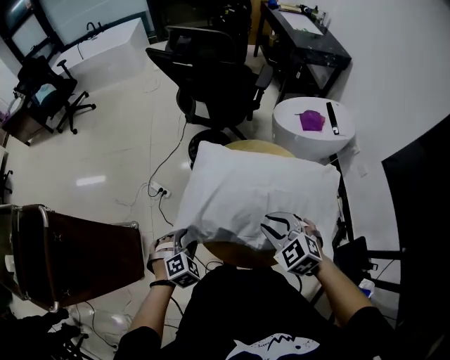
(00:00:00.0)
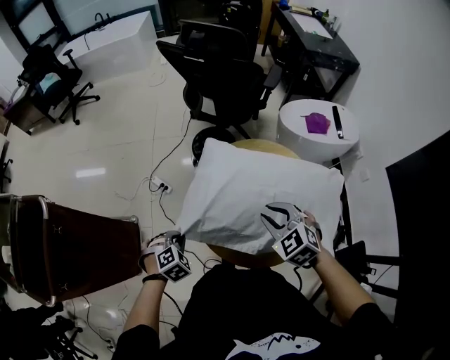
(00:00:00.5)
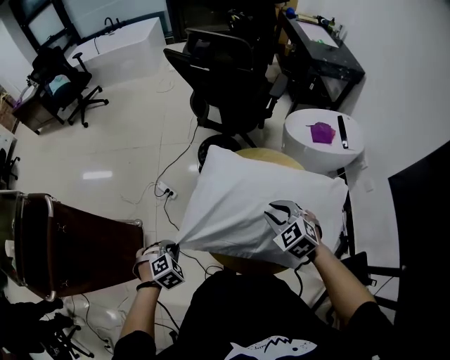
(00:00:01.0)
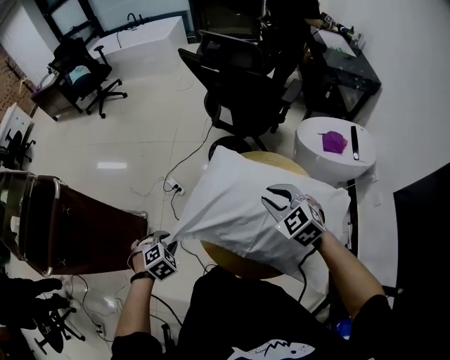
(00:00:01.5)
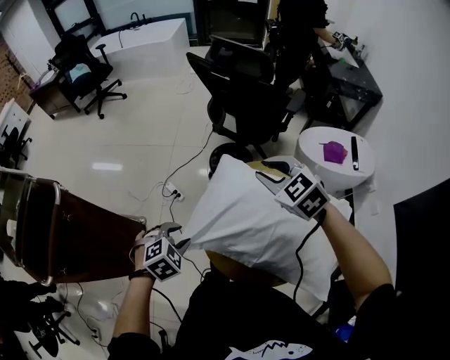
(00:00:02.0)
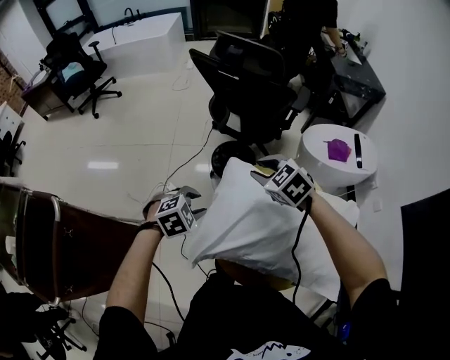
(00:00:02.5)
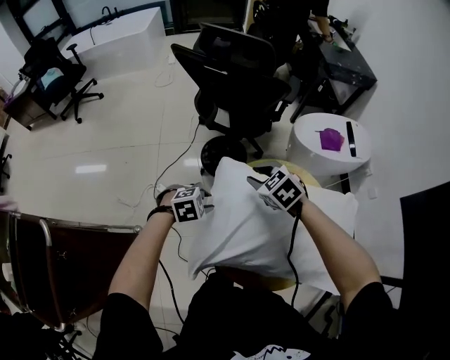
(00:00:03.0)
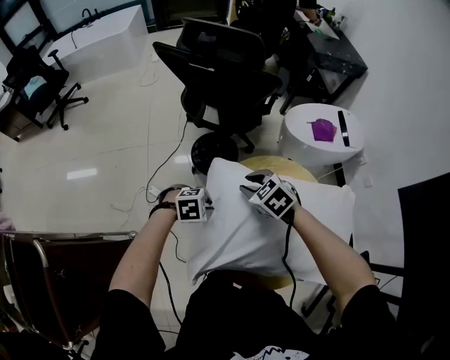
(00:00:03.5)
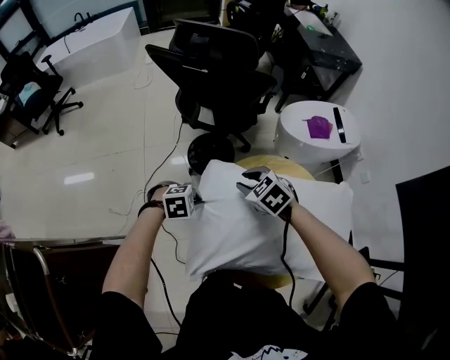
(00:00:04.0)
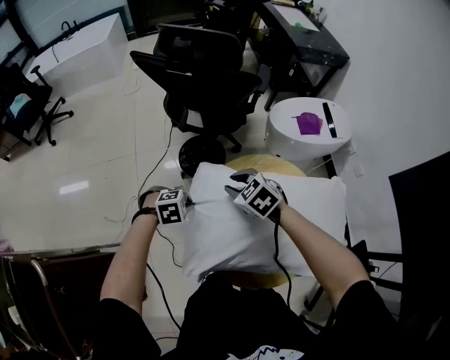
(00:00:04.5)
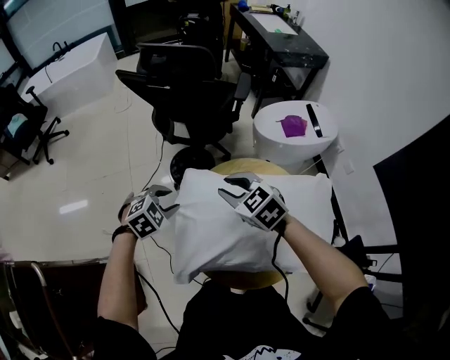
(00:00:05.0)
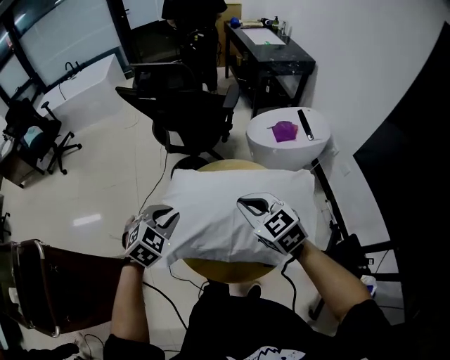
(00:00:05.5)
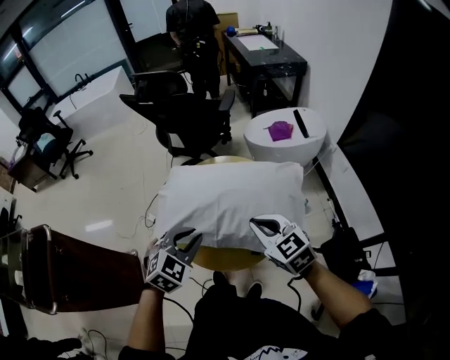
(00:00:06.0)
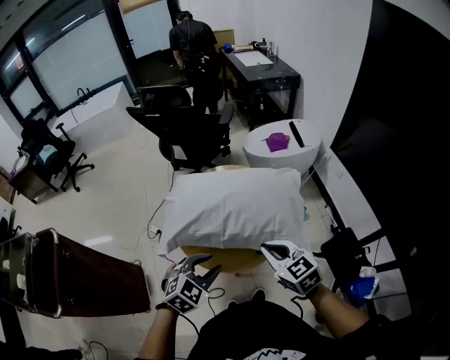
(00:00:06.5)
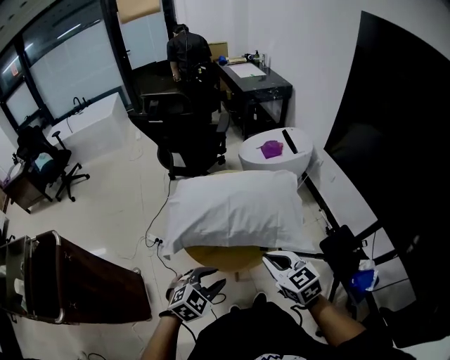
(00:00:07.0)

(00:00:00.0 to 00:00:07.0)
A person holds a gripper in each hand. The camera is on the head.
00:00:00.0 - 00:00:02.0: The right gripper moves forward and upward, about 20 cm. Meanwhile the left gripper goes approximately 10 cm upward, and closes, then reopens.
00:00:02.0 - 00:00:03.5: The right gripper shifts some 20 cm downward, and turns by some 20 degrees. Meanwhile the left gripper shifts by about 20 cm, turns by approximately 40 degrees, and closes its fingers.
00:00:03.5 - 00:00:05.0: The two grippers go about 10 cm upward. The left gripper rotates roughly 20 degrees, and opens up.
00:00:05.0 - 00:00:07.0: The two grippers travel together, backward and to the right, some 50 cm. The right gripper rotates some 20 degrees, and closes.

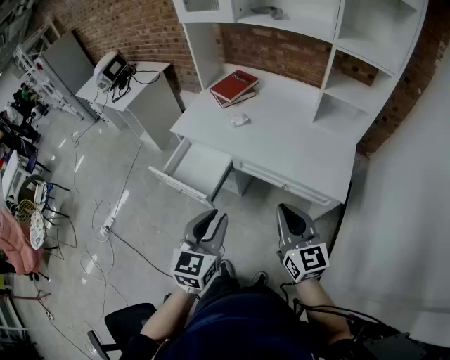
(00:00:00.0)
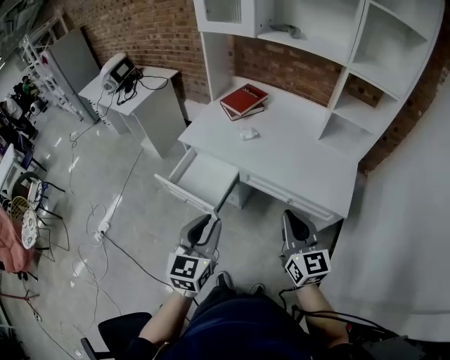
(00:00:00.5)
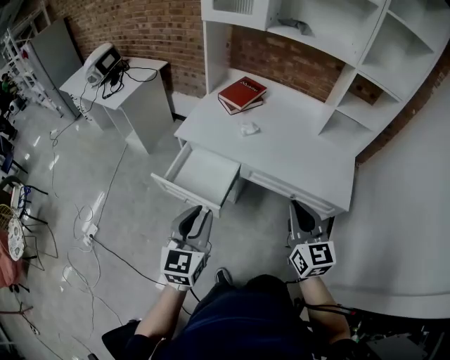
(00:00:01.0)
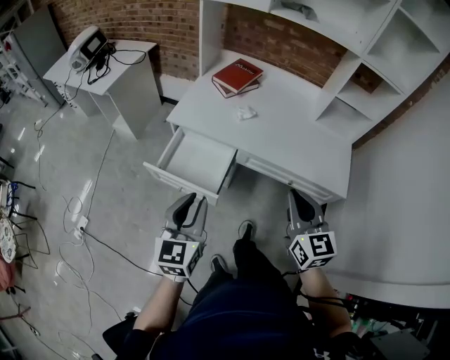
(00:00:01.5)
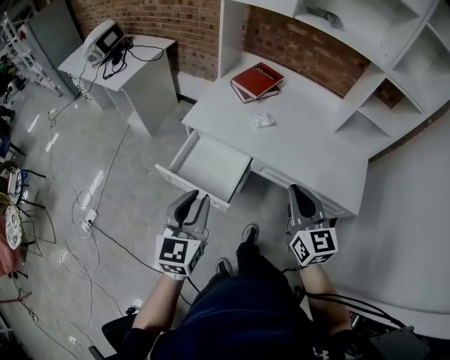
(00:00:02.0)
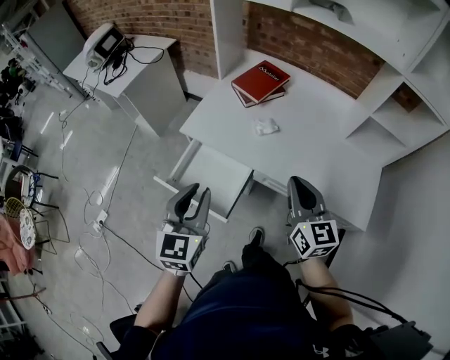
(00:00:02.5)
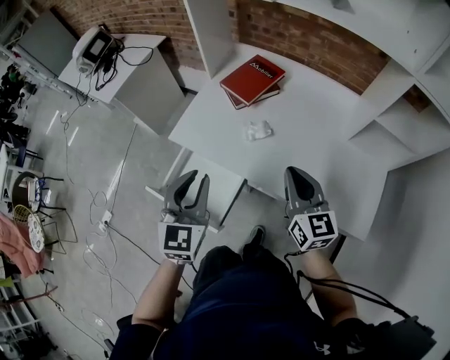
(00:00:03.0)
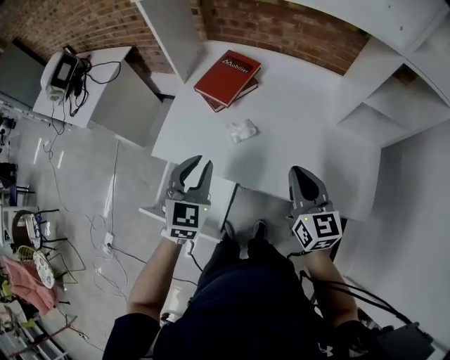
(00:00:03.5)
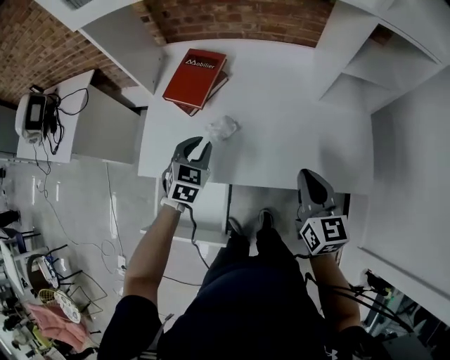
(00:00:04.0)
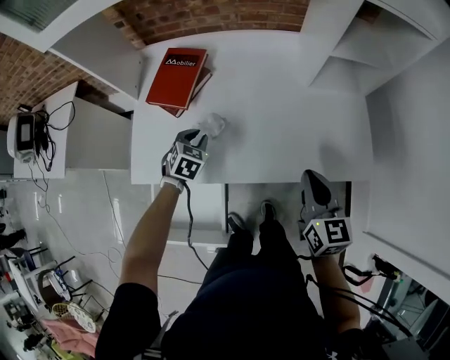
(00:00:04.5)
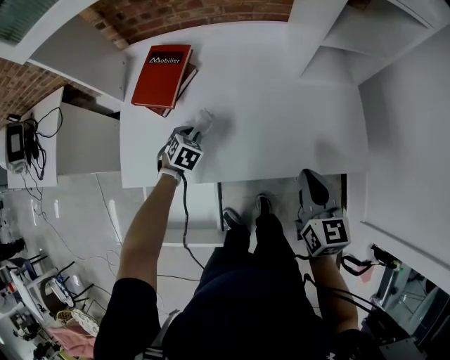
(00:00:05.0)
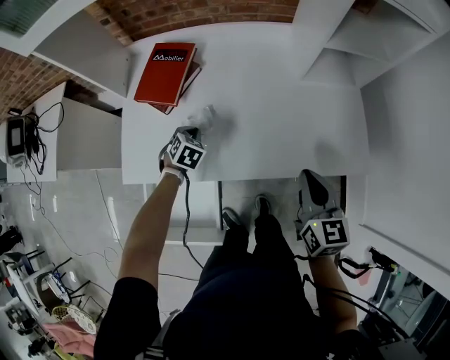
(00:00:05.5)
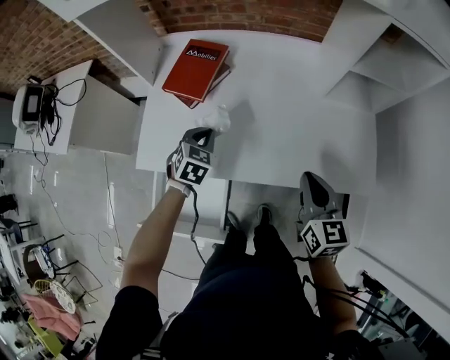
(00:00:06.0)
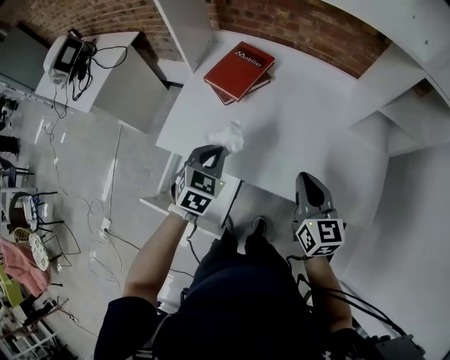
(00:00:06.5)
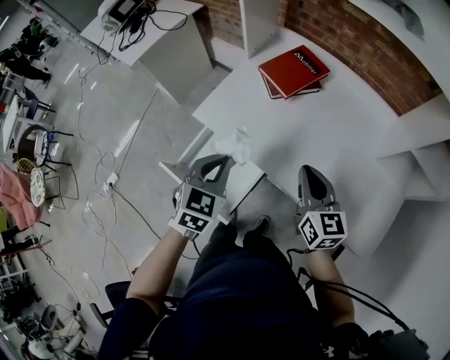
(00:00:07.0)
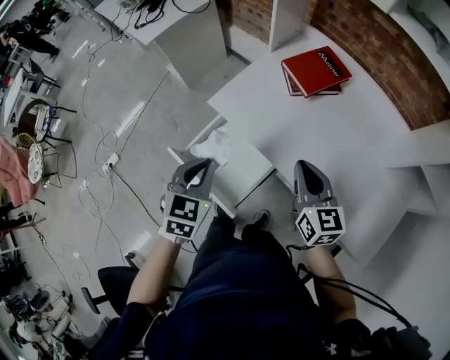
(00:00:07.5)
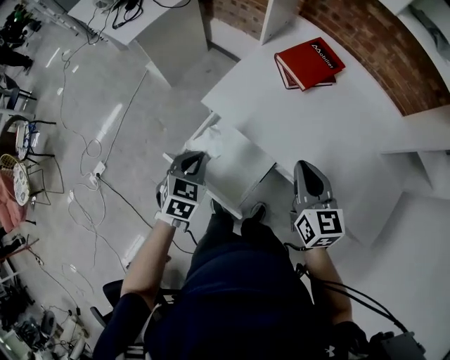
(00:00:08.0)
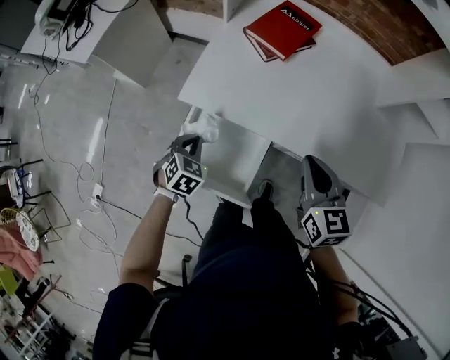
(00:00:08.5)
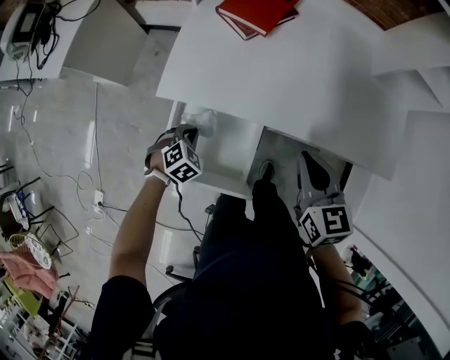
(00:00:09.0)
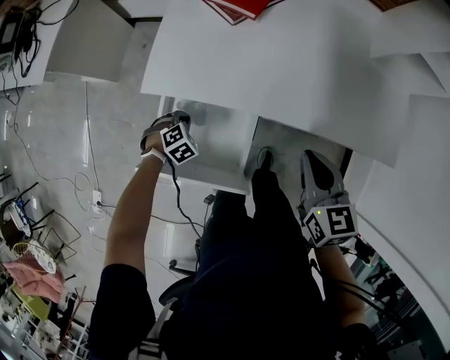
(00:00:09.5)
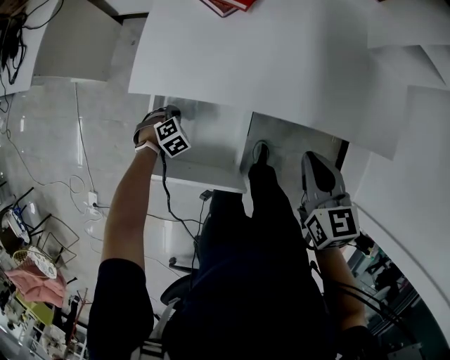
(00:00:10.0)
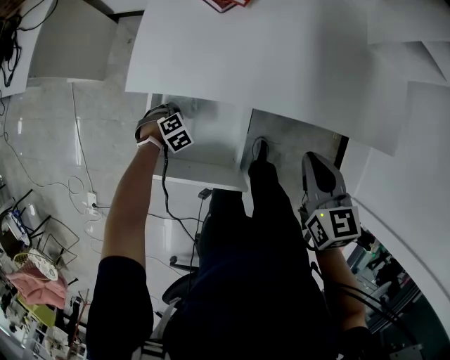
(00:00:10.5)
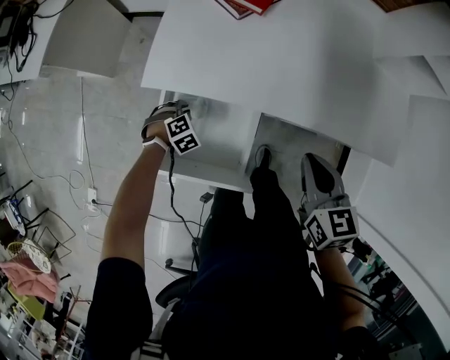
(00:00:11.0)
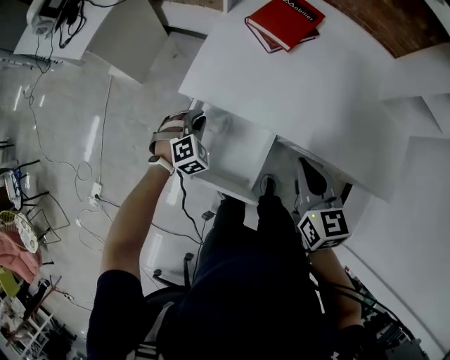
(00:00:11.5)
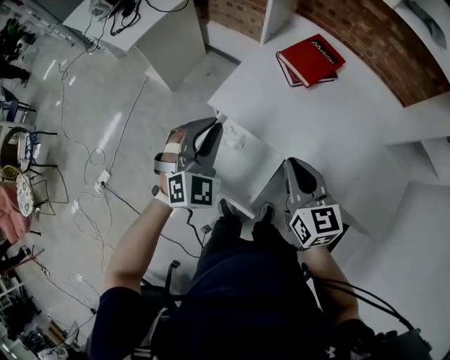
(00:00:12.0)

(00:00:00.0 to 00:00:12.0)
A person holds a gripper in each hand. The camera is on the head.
00:00:00.0 - 00:00:02.0: The two grippers go some 20 cm to the left and forward.
00:00:02.0 - 00:00:04.0: The right gripper moves roughly 25 cm, and swivels roughly 30 degrees, while the left gripper changes place by some 40 cm, and changes its angle by about 40 degrees.
00:00:04.0 - 00:00:06.0: The left gripper goes downward and returns, roughly 15 cm each way, and closes up.
00:00:06.0 - 00:00:08.0: The right gripper changes place by about 25 cm, and changes its angle by about 30 degrees. Meanwhile the left gripper goes upward and returns, roughly 15 cm each way, and turns by roughly 30 degrees.
00:00:08.0 - 00:00:10.0: The left gripper goes about 30 cm downward, and rotates around the line of its fingers by about 60 degrees, clockwise from behind, while the right gripper shifts by about 15 cm, and changes its angle by about 30 degrees.
00:00:10.0 - 00:00:12.0: The left gripper is displaced upward by about 40 cm, and points its fingers approximately 60 degrees further upward; the right gripper shifts by approximately 15 cm, and swivels roughly 30 degrees.

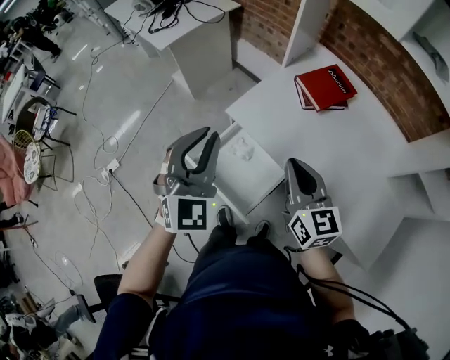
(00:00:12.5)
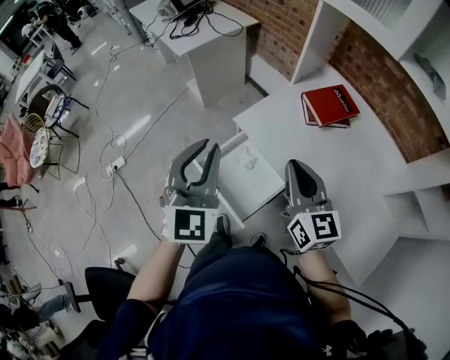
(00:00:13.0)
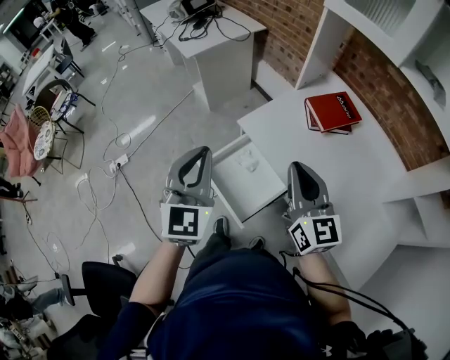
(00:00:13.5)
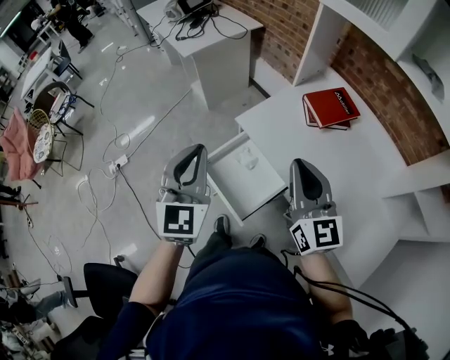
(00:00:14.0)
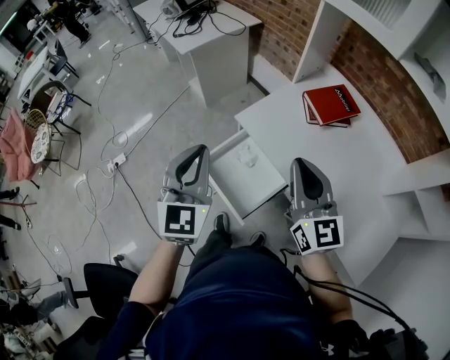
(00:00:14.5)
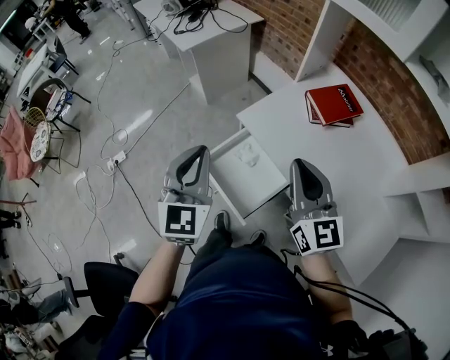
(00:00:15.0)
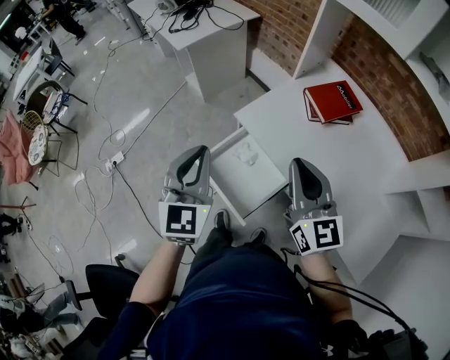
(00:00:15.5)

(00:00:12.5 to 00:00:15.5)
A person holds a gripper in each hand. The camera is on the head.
00:00:12.5 - 00:00:14.0: The left gripper travels backward by about 5 cm, and turns by approximately 20 degrees; the right gripper goes approximately 10 cm upward.
00:00:14.0 - 00:00:15.5: The grippers make only small movements.

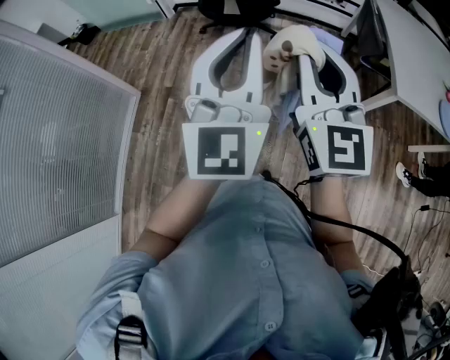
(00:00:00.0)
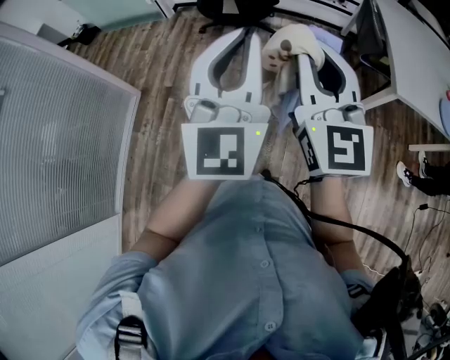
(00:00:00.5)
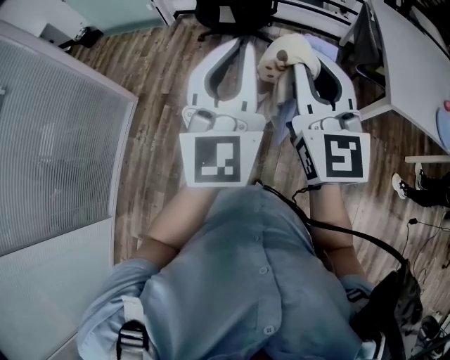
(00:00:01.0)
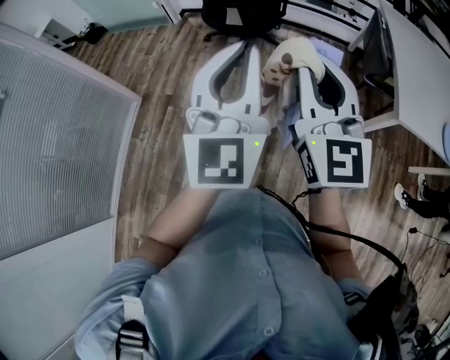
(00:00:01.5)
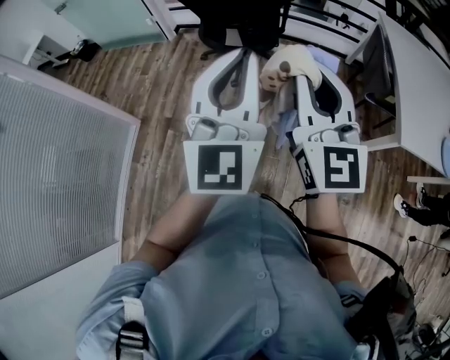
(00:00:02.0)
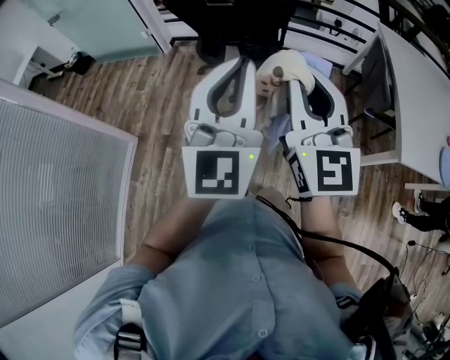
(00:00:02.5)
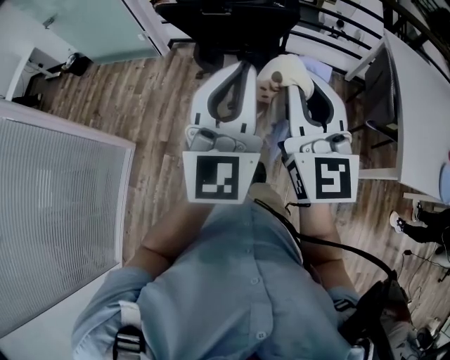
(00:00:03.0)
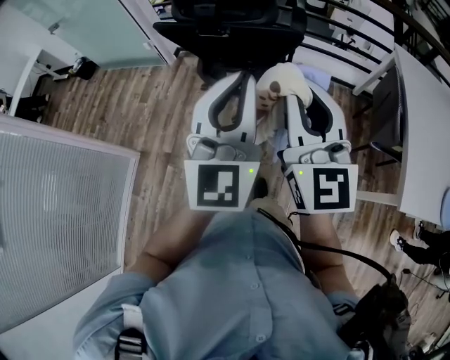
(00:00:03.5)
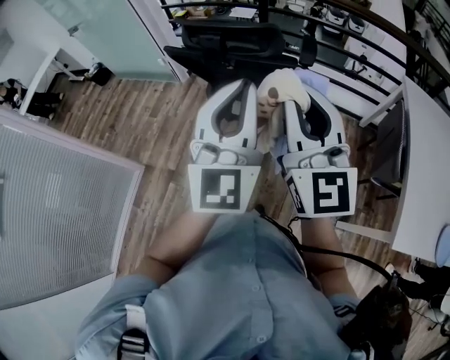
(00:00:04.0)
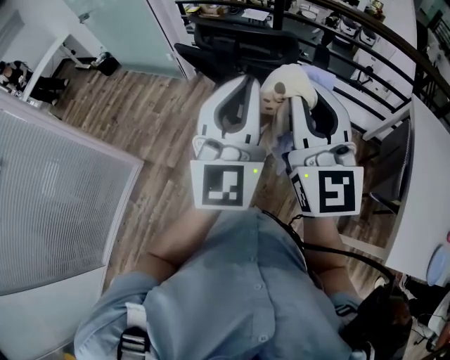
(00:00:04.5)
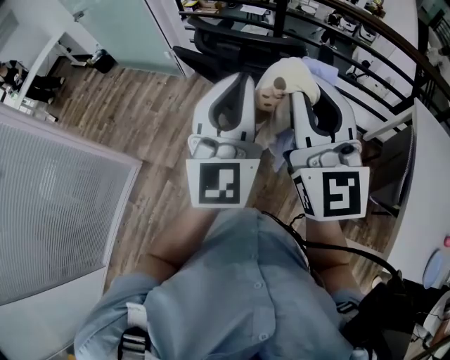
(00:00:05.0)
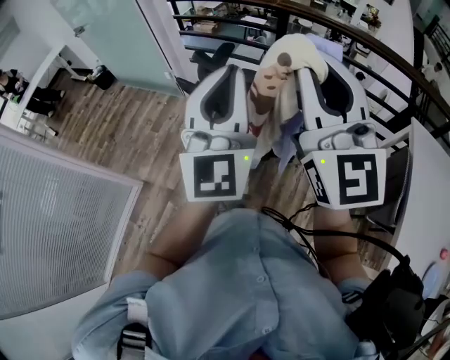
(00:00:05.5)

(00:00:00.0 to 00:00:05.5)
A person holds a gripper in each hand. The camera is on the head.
00:00:00.0 - 00:00:02.0: The two grippers go roughly 15 cm forward.
00:00:02.0 - 00:00:03.5: Both grippers travel together forward, approximately 25 cm.
00:00:03.5 - 00:00:05.5: The right gripper shifts roughly 25 cm forward and upward. The left gripper travels forward by approximately 20 cm.
